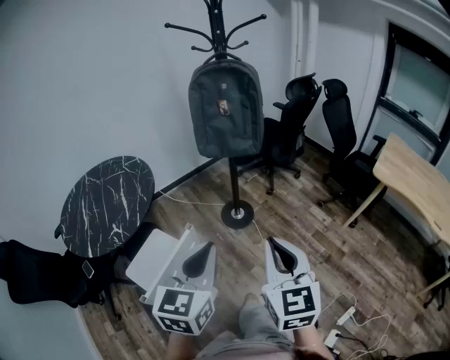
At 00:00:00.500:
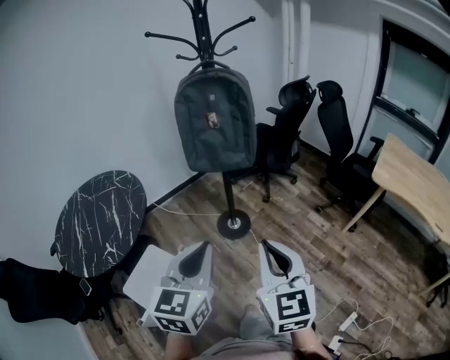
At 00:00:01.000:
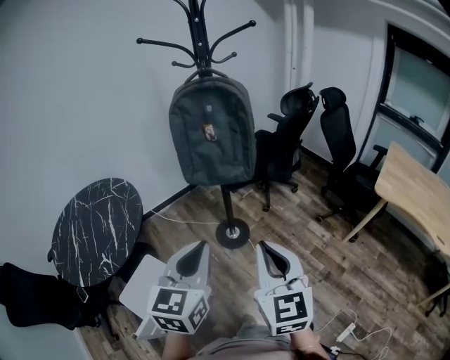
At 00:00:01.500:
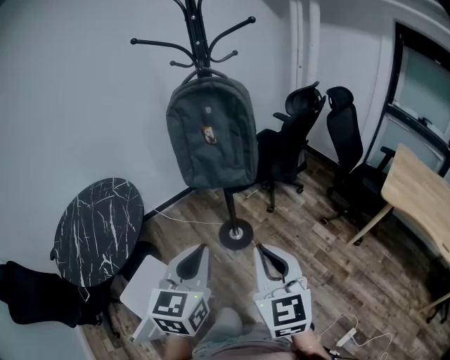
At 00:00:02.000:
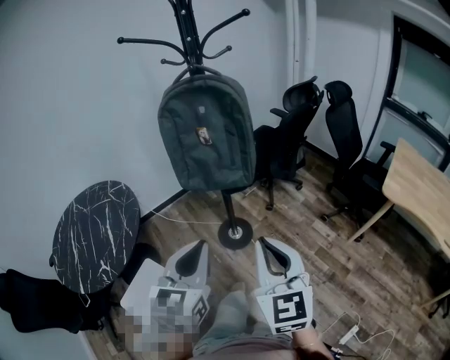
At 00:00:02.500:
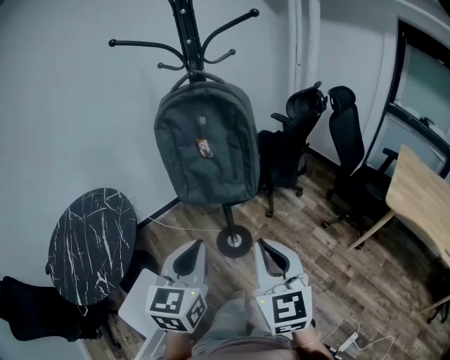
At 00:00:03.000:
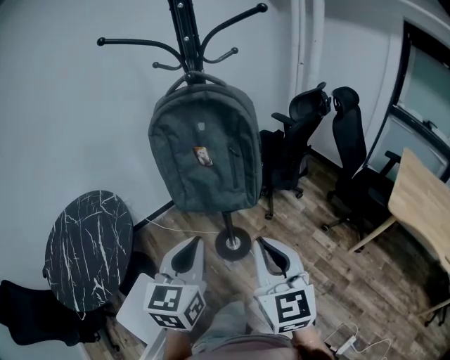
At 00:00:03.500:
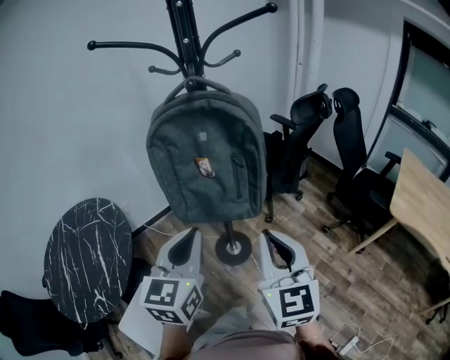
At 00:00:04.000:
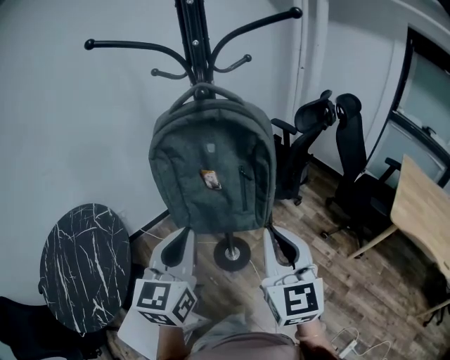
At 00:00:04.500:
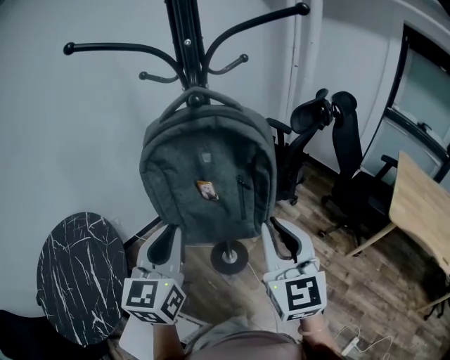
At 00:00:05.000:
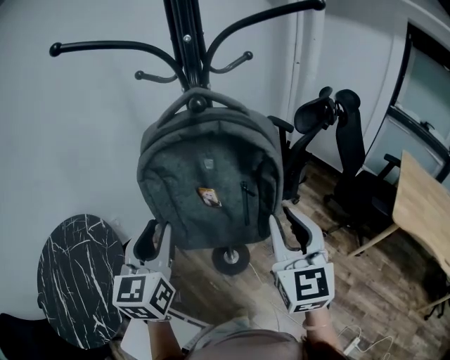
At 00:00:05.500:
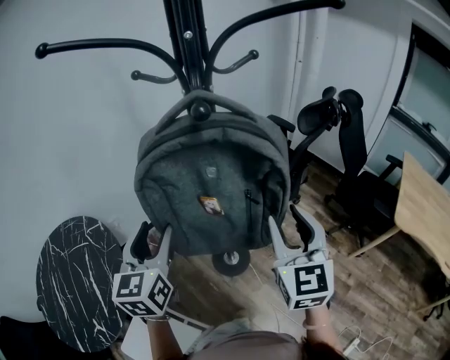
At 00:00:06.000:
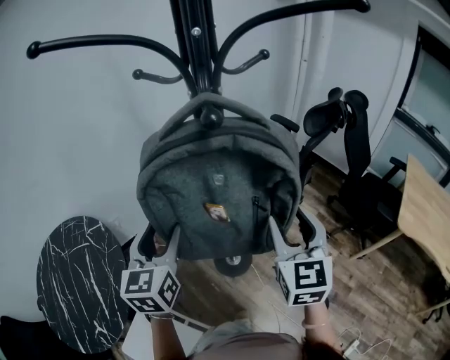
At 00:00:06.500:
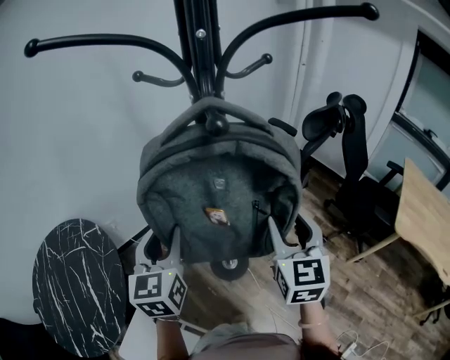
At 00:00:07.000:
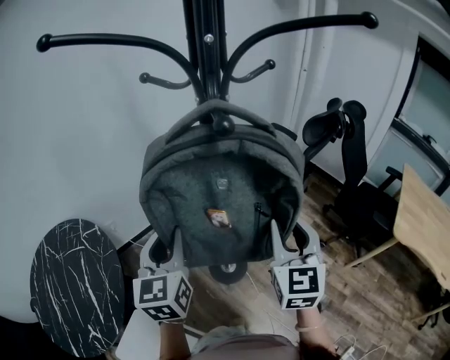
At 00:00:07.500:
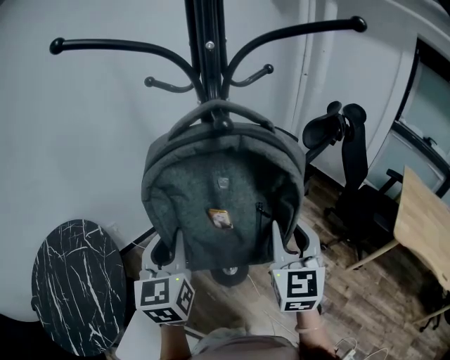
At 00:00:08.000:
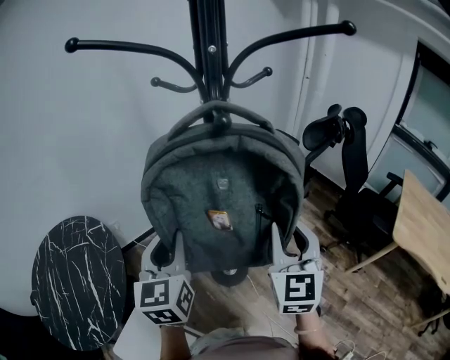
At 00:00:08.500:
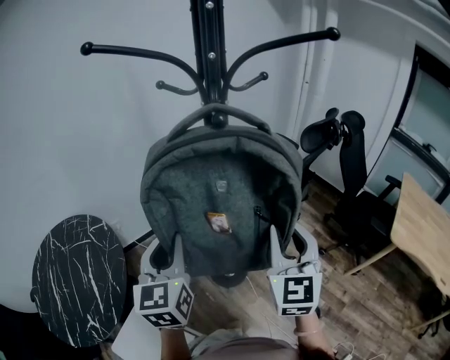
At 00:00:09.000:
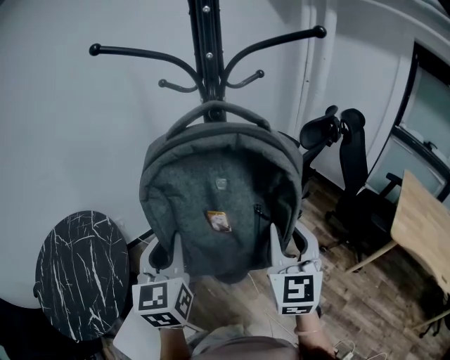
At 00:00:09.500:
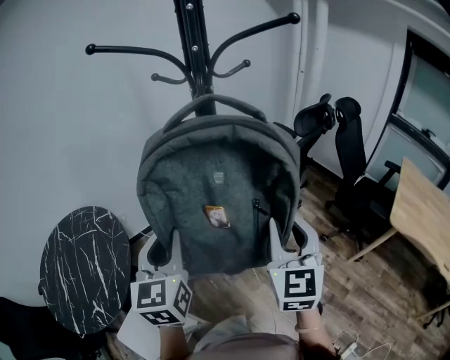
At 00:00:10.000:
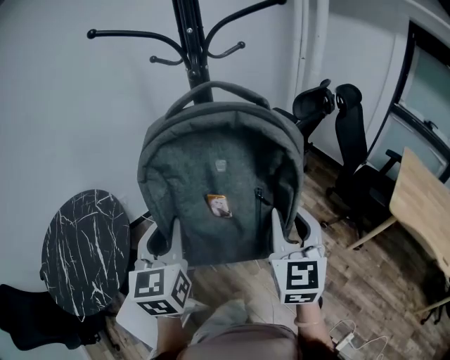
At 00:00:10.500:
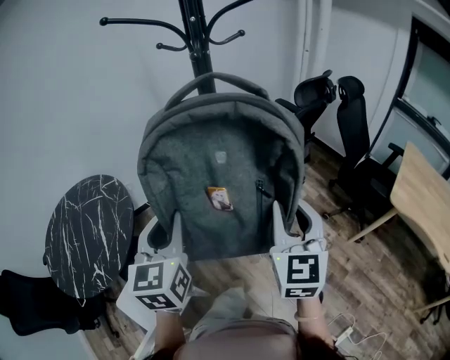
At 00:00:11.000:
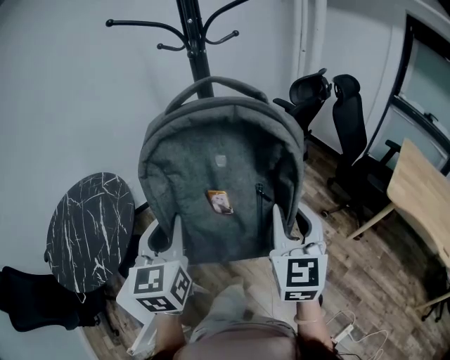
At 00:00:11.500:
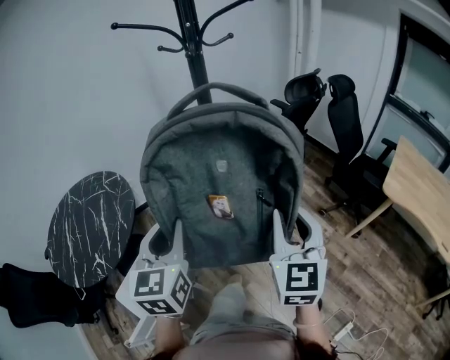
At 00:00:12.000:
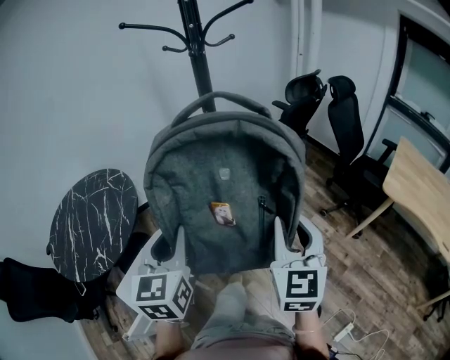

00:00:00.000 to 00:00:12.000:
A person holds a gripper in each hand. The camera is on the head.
00:00:00.000 to 00:00:02.000: The two grippers go roughly 20 cm forward.
00:00:02.000 to 00:00:04.000: The two grippers go some 20 cm forward.
00:00:04.000 to 00:00:06.000: The right gripper travels forward by roughly 15 cm, and opens its fingers; the left gripper moves forward and to the left, about 15 cm, and opens.
00:00:06.000 to 00:00:08.000: The left gripper closes, while the right gripper closes up.
00:00:08.000 to 00:00:10.000: The two grippers go about 15 cm backward.
00:00:10.000 to 00:00:12.000: Both grippers travel together backward, about 20 cm.

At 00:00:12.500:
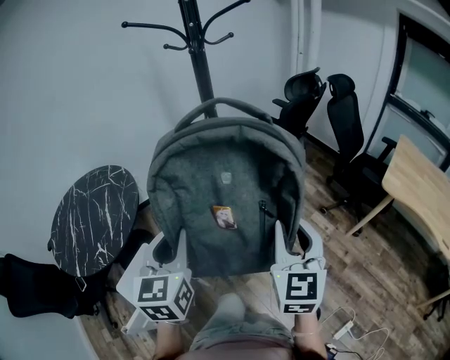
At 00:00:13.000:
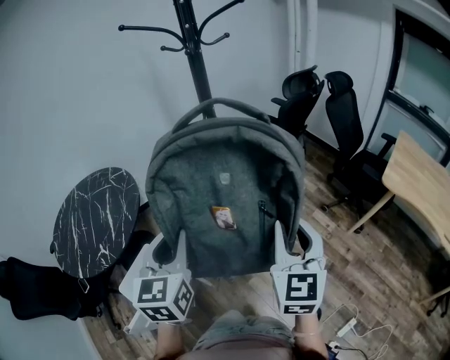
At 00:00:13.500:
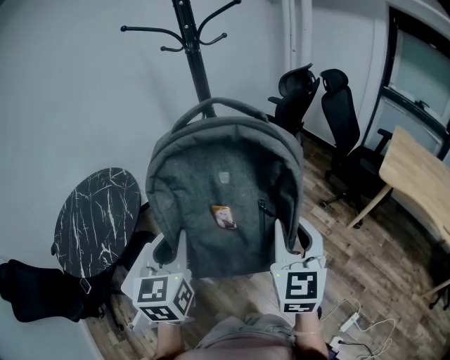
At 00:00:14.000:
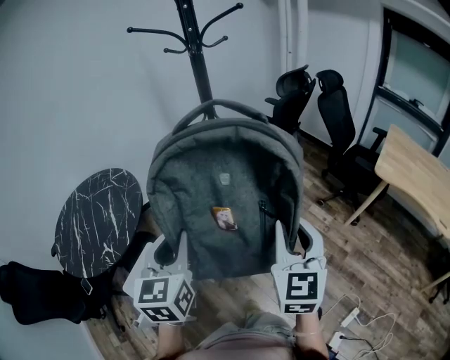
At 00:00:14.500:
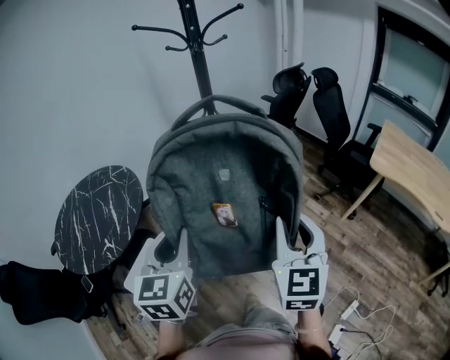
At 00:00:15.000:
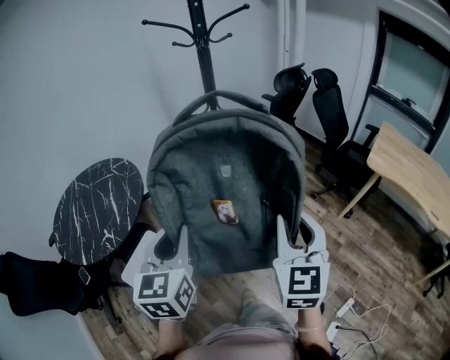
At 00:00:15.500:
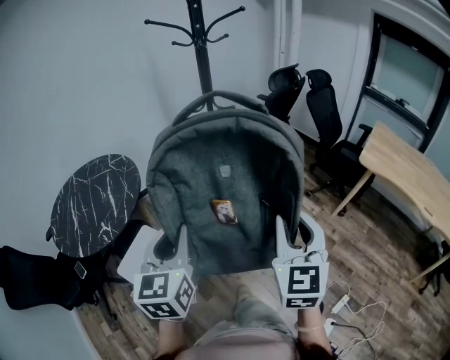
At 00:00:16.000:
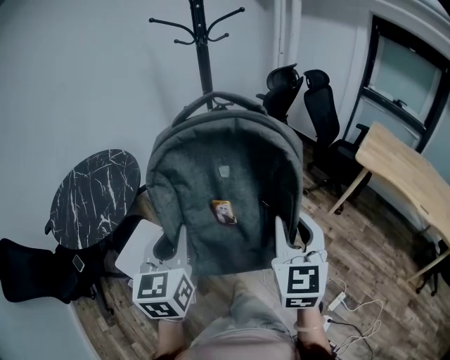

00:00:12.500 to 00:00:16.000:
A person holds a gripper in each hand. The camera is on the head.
00:00:12.500 to 00:00:14.500: Both grippers move backward, about 10 cm.
00:00:14.500 to 00:00:16.000: The two grippers go roughly 10 cm backward.

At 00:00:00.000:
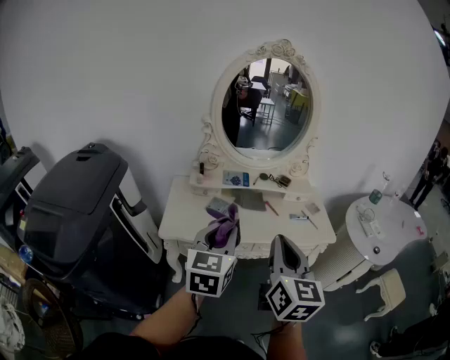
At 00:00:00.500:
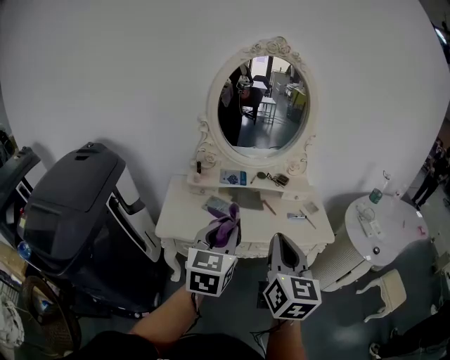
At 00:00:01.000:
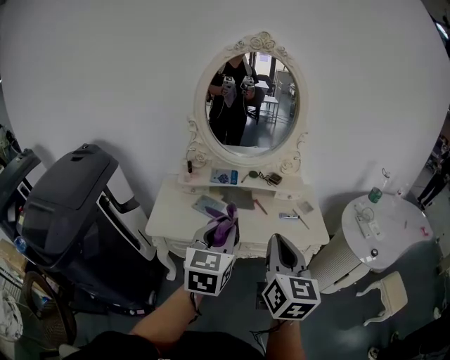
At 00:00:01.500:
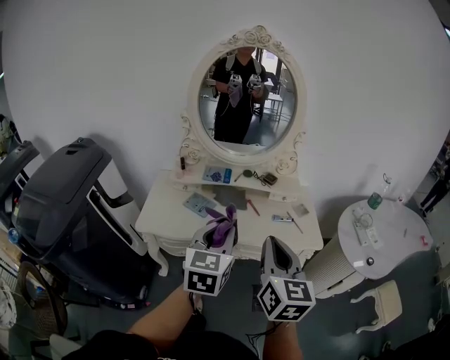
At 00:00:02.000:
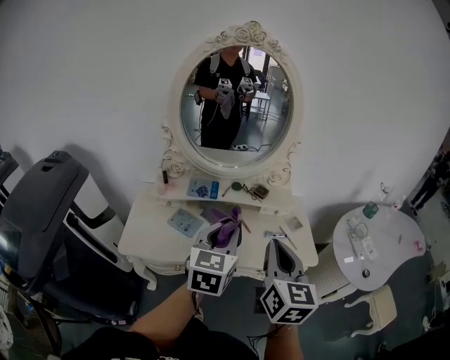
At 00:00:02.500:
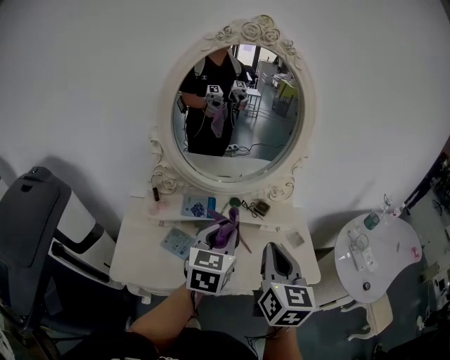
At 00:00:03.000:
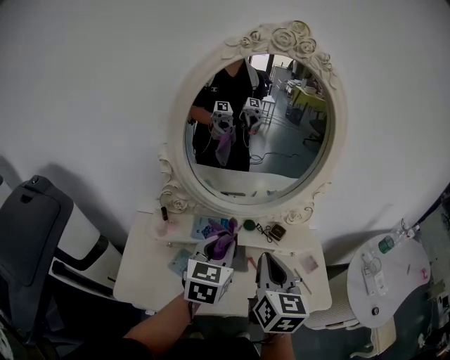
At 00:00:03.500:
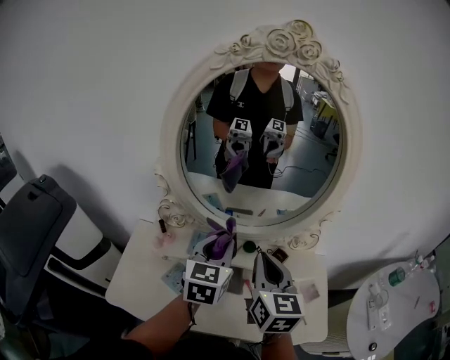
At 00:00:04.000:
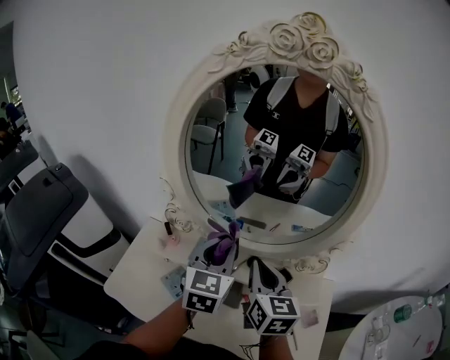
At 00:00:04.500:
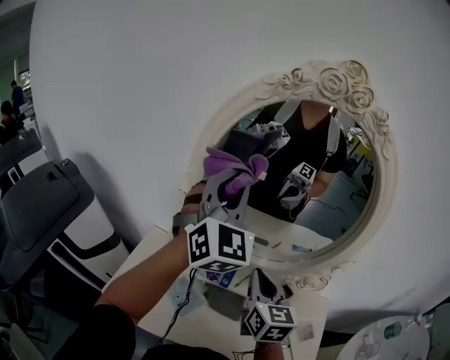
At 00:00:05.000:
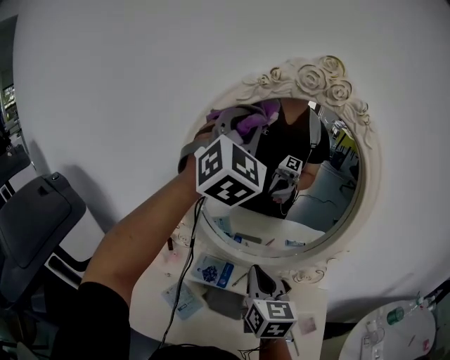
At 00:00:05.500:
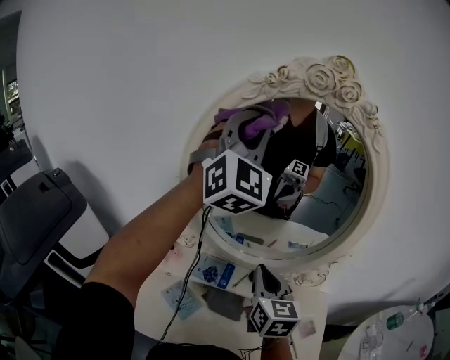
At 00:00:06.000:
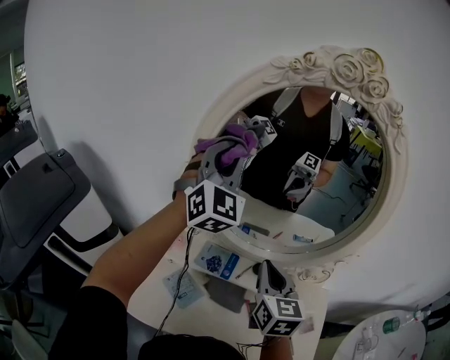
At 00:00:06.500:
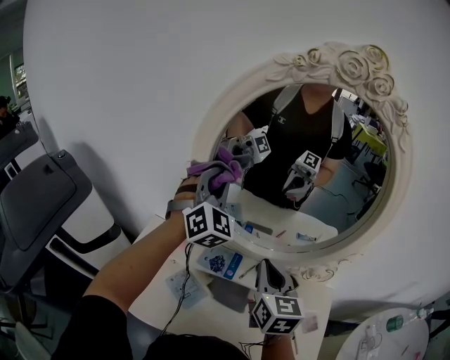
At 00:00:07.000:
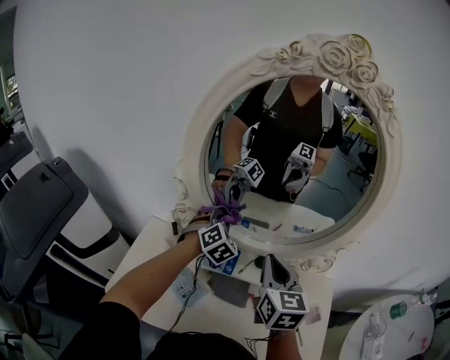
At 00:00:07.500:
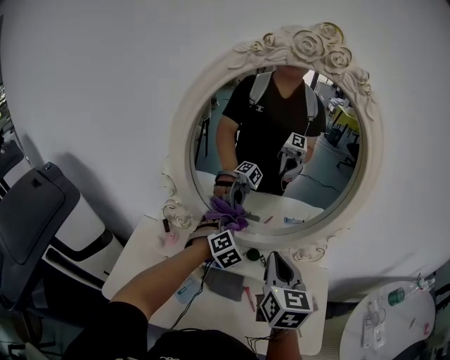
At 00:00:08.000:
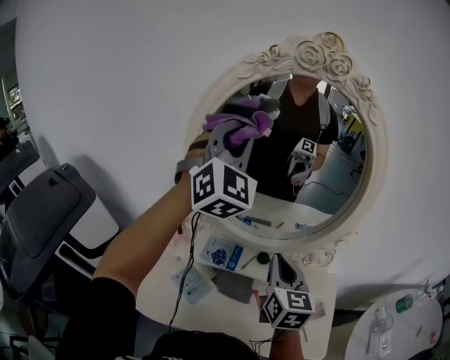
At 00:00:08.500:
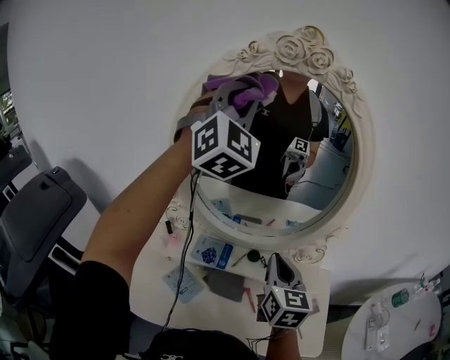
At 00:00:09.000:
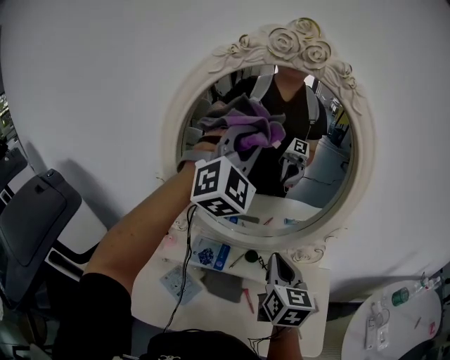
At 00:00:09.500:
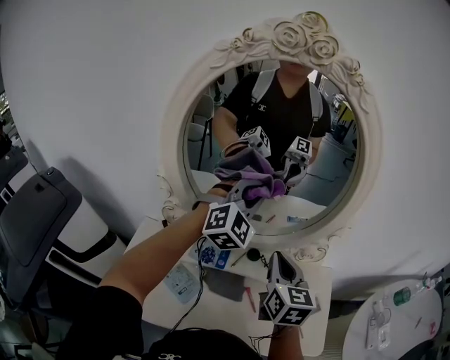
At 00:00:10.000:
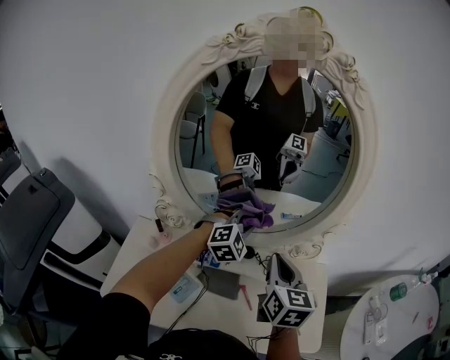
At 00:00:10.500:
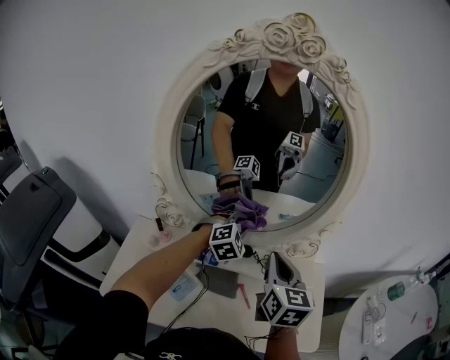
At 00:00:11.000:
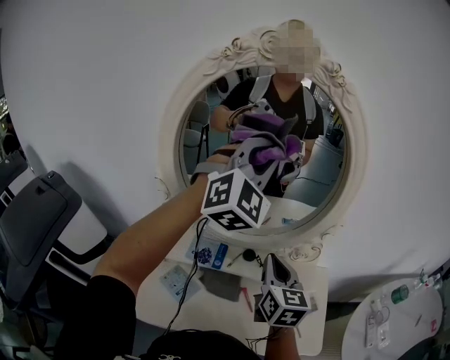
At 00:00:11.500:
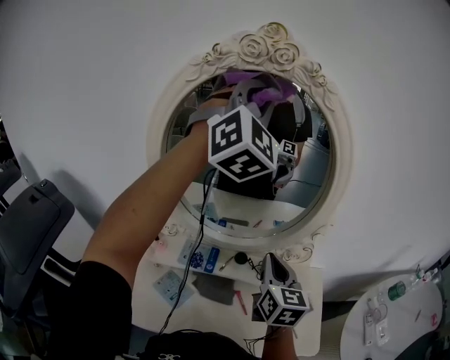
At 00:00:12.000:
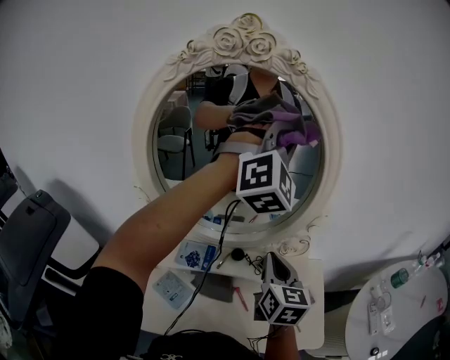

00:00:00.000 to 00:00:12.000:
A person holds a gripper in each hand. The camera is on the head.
00:00:00.000 to 00:00:02.000: Both grippers move forward and to the right, approximately 20 cm.
00:00:02.000 to 00:00:04.000: The grippers both shift forward by roughly 35 cm. The right gripper changes its angle by about 20 degrees.
00:00:04.000 to 00:00:06.000: The left gripper shifts about 25 cm upward, forward and to the left, and changes its angle by approximately 50 degrees.
00:00:06.000 to 00:00:08.000: The left gripper travels downward and back again, approximately 35 cm each way.
00:00:08.000 to 00:00:10.000: The right gripper shifts by some 5 cm, while the left gripper shifts approximately 35 cm downward and to the right, and tilts its fingers some 40 degrees downward.
00:00:10.000 to 00:00:12.000: The left gripper moves upward, some 35 cm, and swivels about 30 degrees.
